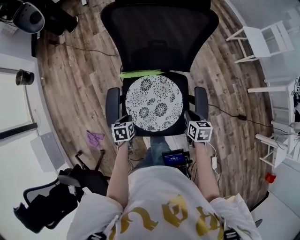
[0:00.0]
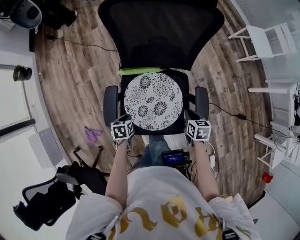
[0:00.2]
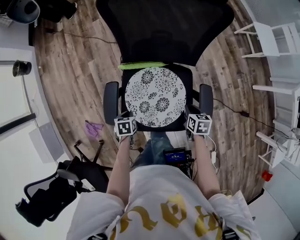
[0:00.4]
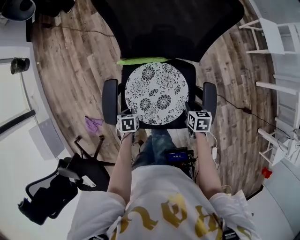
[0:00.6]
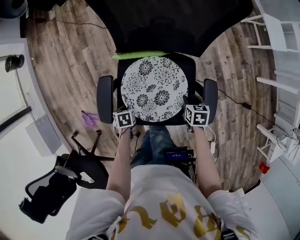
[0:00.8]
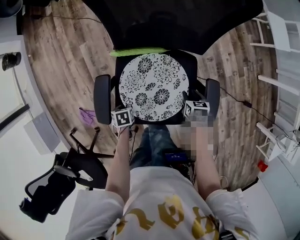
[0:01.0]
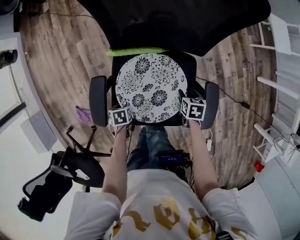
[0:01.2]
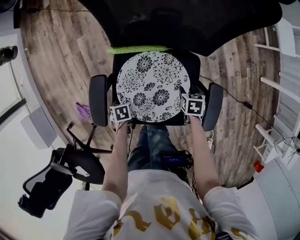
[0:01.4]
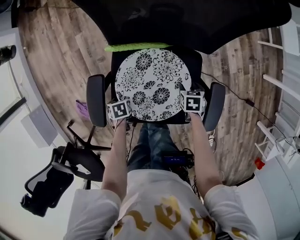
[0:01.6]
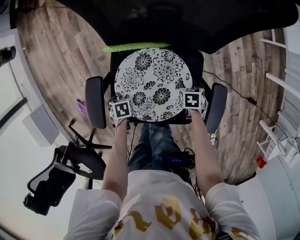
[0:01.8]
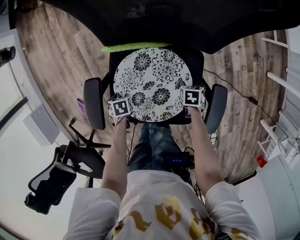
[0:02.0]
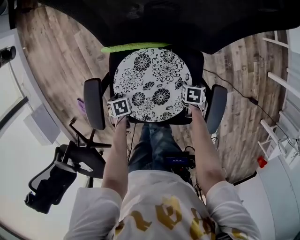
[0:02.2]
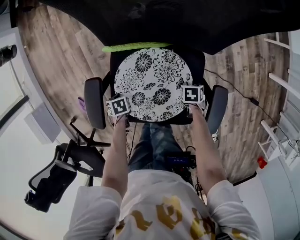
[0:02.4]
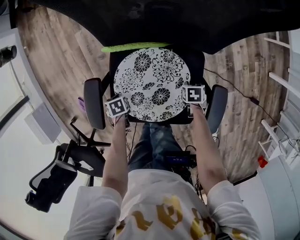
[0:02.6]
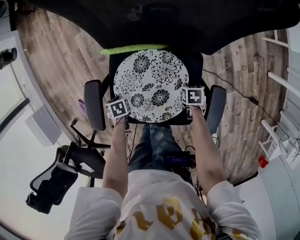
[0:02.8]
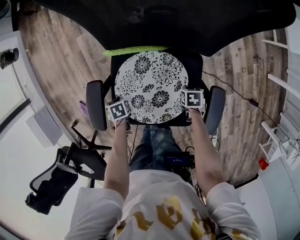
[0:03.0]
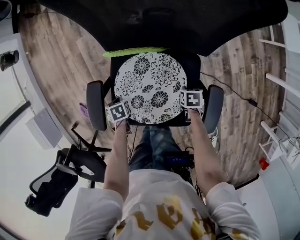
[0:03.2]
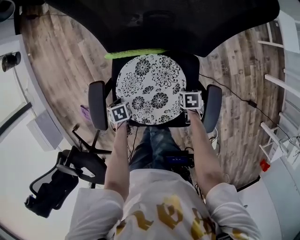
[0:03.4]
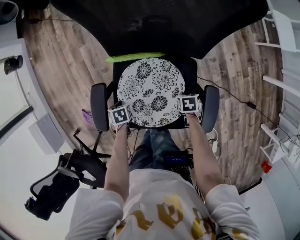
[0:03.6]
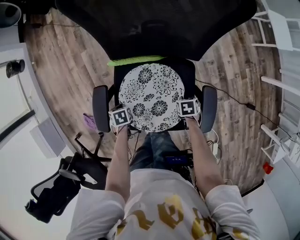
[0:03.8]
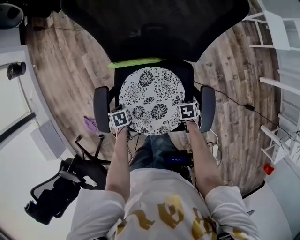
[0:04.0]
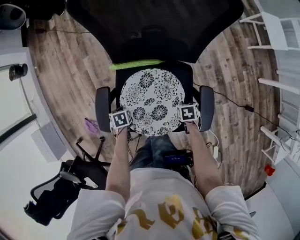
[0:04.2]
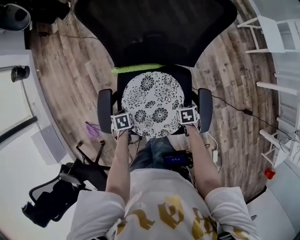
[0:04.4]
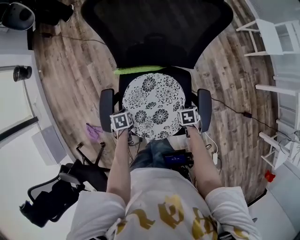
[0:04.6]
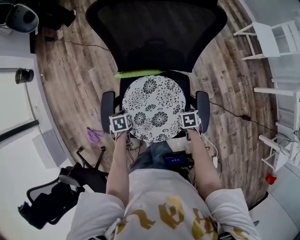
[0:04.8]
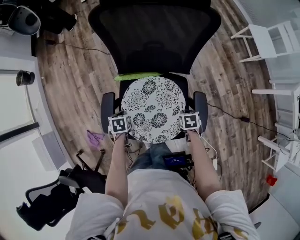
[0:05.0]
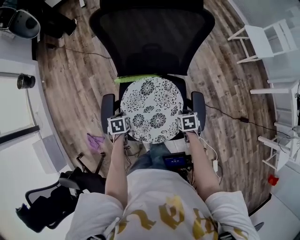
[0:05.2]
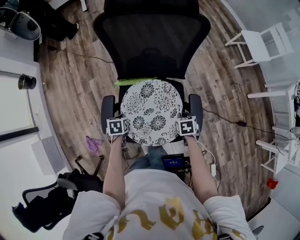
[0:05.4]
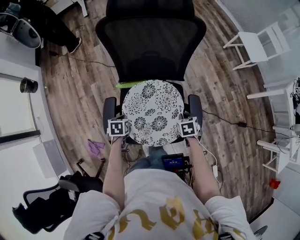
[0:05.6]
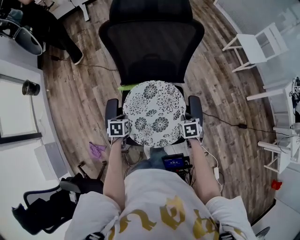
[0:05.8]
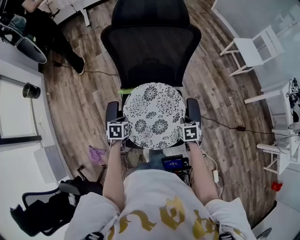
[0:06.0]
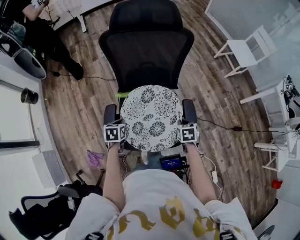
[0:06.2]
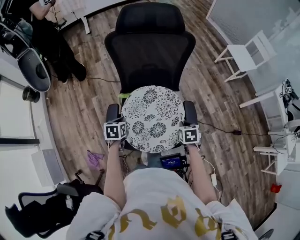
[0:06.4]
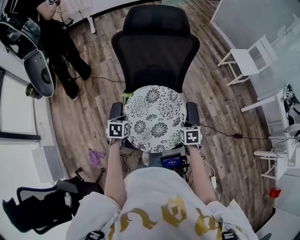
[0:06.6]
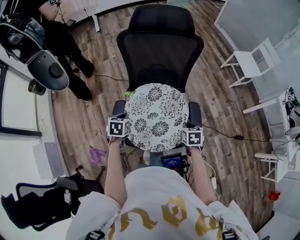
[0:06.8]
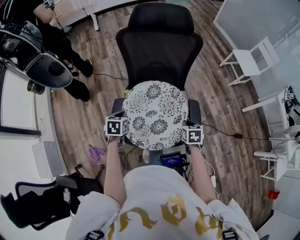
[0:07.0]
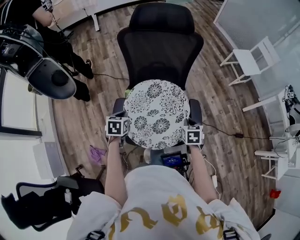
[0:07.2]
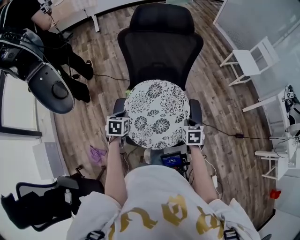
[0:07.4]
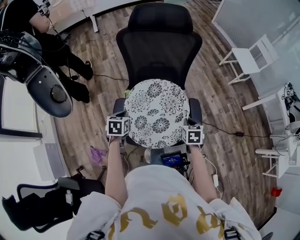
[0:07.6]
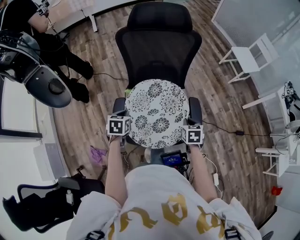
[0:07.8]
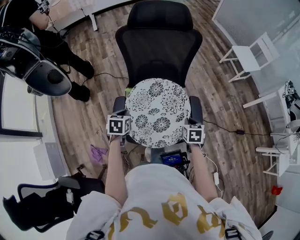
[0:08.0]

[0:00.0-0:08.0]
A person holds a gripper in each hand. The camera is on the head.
0:00.0 to 0:01.6: Both grippers move downward, about 20 cm. The right gripper swivels about 20 degrees, and opens up, while the left gripper rotates approximately 30 degrees, and opens its fingers.
0:01.6 to 0:03.2: The right gripper closes up, while the left gripper closes up.
0:03.2 to 0:04.8: Both grippers move upward, approximately 10 cm.
0:04.8 to 0:06.4: The two grippers go about 15 cm upward. The right gripper swivels roughly 20 degrees, while the left gripper swivels approximately 20 degrees.
0:06.4 to 0:08.0: The left gripper moves upward, roughly 5 cm.

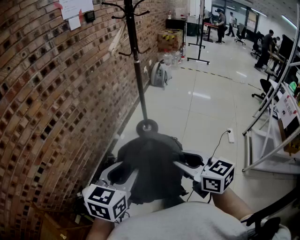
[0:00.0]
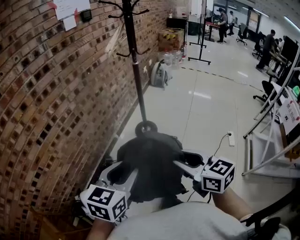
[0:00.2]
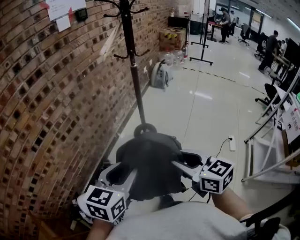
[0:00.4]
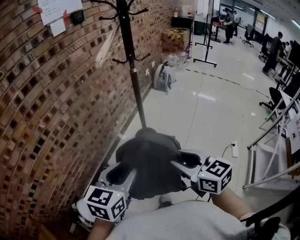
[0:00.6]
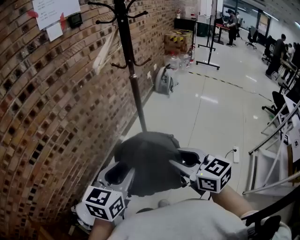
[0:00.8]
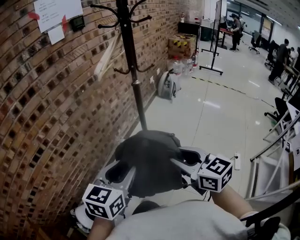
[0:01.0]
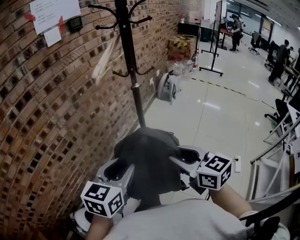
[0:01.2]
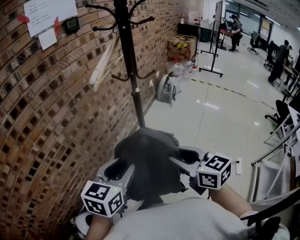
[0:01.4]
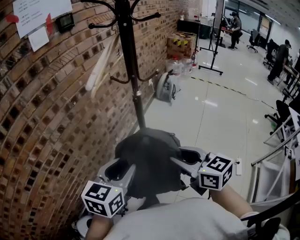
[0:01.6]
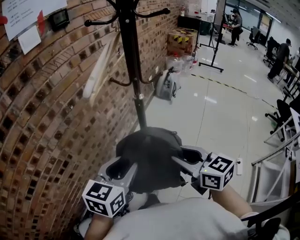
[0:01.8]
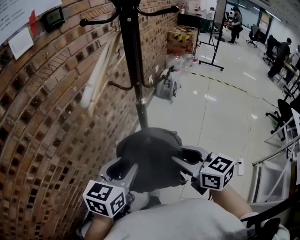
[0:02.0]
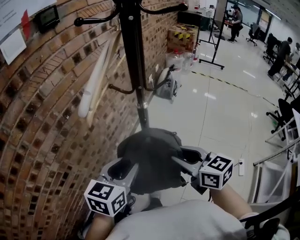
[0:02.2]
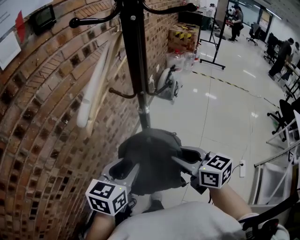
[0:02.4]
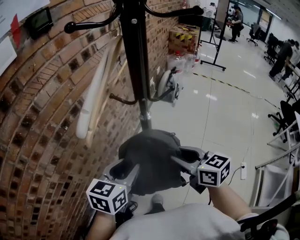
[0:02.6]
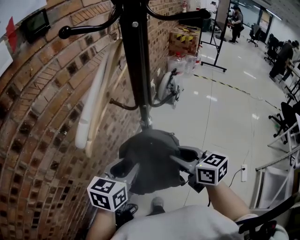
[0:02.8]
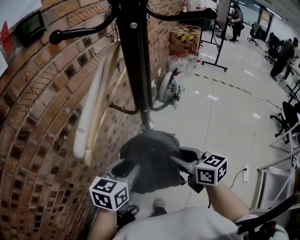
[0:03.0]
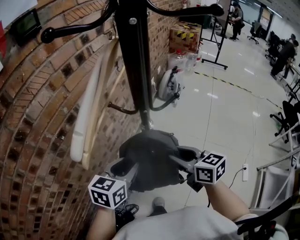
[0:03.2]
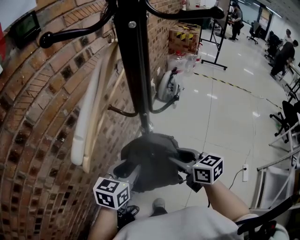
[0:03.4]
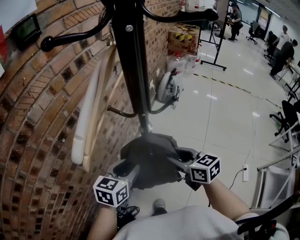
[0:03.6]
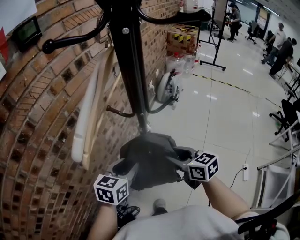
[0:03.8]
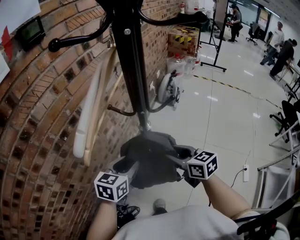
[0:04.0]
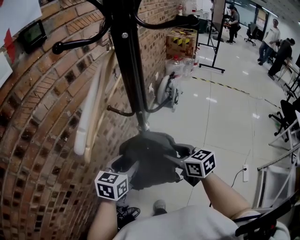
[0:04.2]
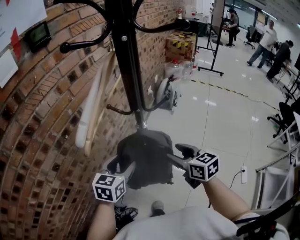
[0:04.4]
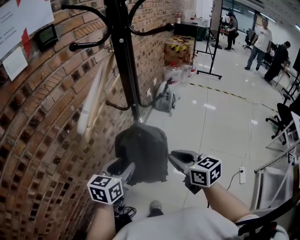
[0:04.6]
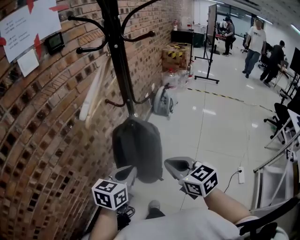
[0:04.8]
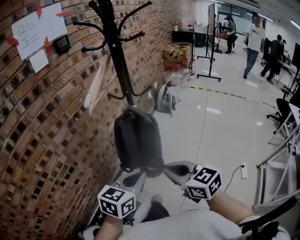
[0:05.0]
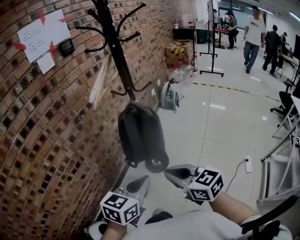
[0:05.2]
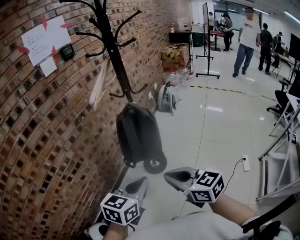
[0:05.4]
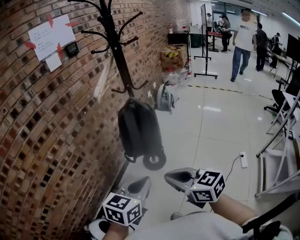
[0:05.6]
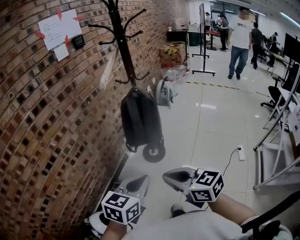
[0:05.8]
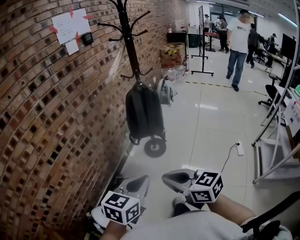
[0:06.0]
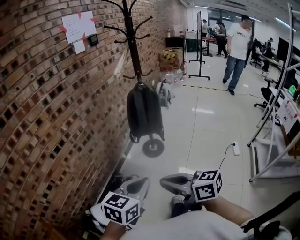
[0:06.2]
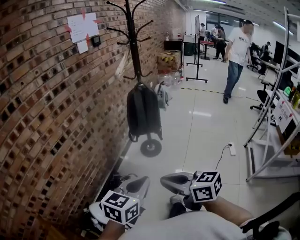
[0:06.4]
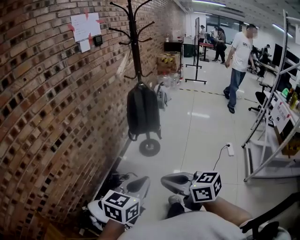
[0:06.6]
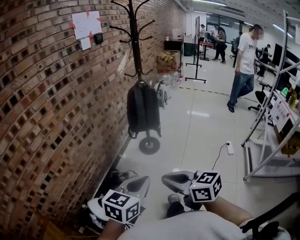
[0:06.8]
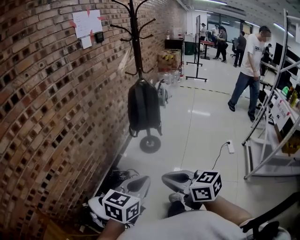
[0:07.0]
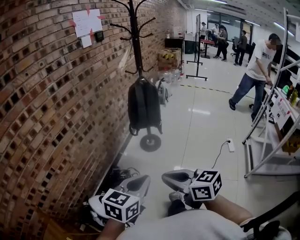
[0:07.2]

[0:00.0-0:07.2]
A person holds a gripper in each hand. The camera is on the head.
0:00.0 to 0:01.4: The grippers both shift forward by some 35 cm.
0:01.4 to 0:02.8: The two grippers go about 30 cm forward.
0:02.8 to 0:04.4: The right gripper opens up. Meanwhile the left gripper opens up.
0:04.4 to 0:05.8: Both grippers are carried backward, roughly 50 cm. The right gripper closes up. The left gripper closes its fingers.
0:05.8 to 0:07.2: Both grippers travel together backward and to the left, some 20 cm.

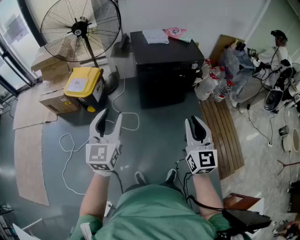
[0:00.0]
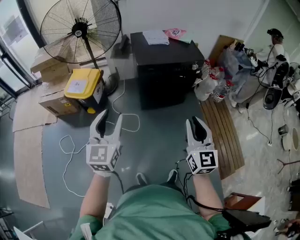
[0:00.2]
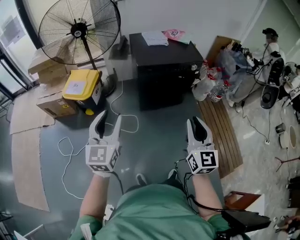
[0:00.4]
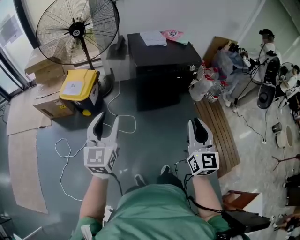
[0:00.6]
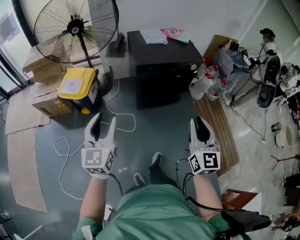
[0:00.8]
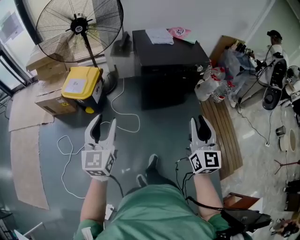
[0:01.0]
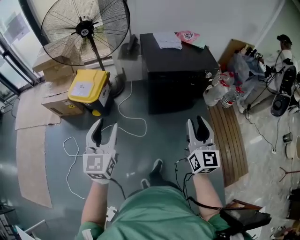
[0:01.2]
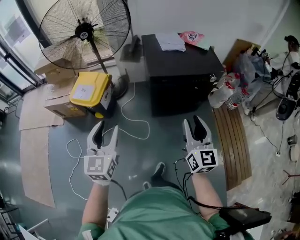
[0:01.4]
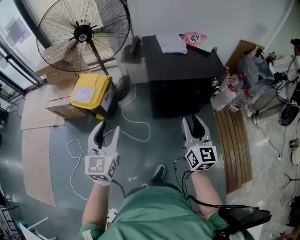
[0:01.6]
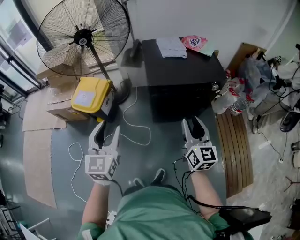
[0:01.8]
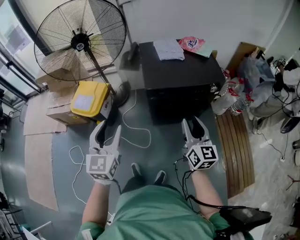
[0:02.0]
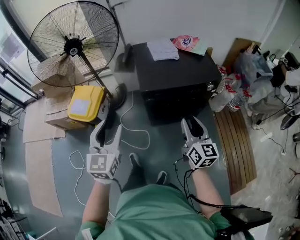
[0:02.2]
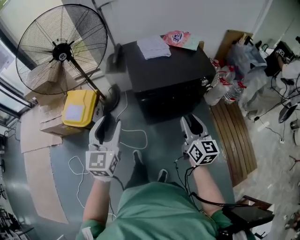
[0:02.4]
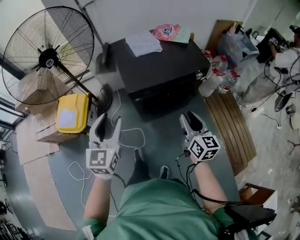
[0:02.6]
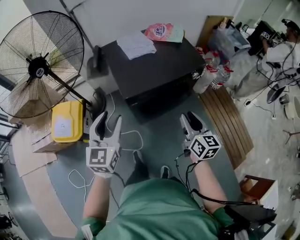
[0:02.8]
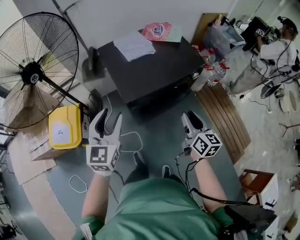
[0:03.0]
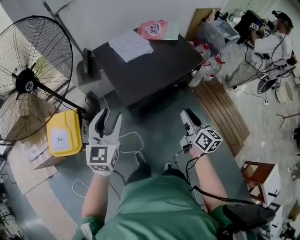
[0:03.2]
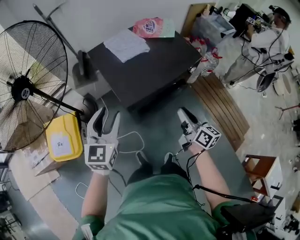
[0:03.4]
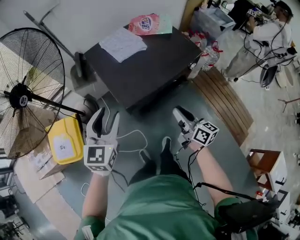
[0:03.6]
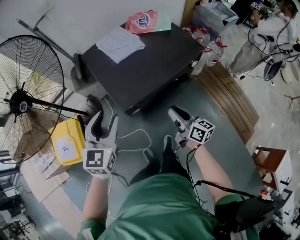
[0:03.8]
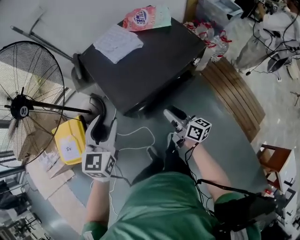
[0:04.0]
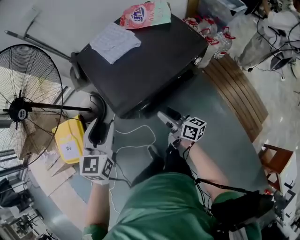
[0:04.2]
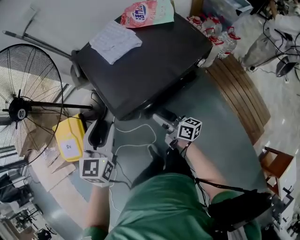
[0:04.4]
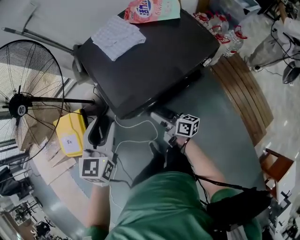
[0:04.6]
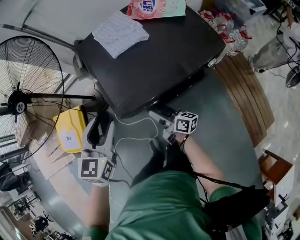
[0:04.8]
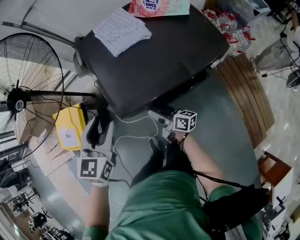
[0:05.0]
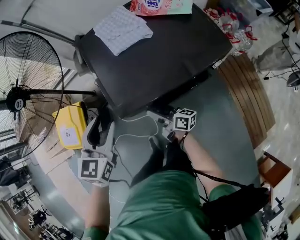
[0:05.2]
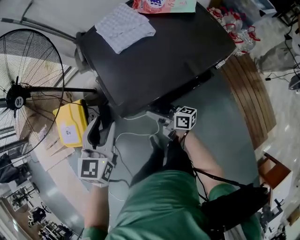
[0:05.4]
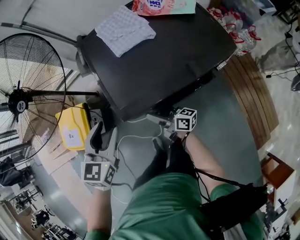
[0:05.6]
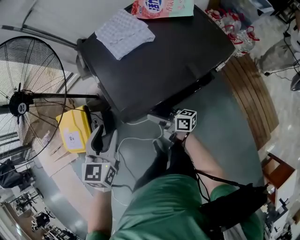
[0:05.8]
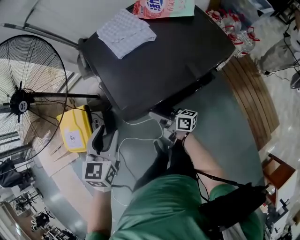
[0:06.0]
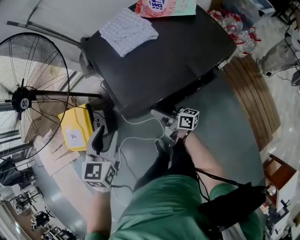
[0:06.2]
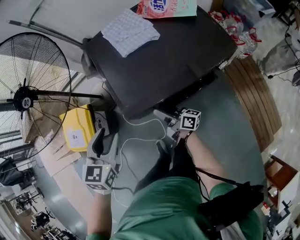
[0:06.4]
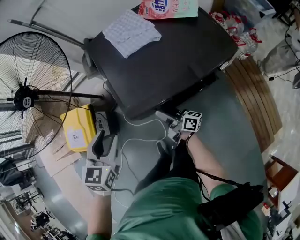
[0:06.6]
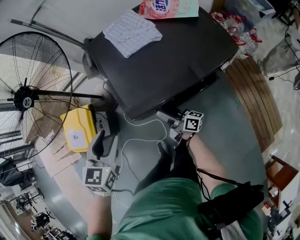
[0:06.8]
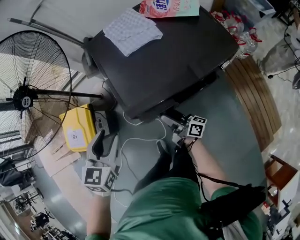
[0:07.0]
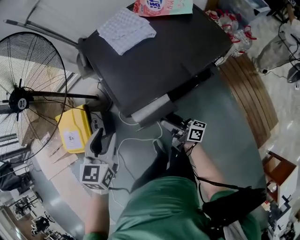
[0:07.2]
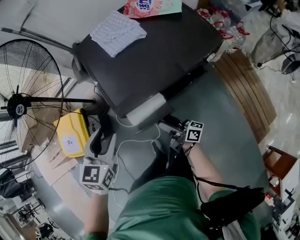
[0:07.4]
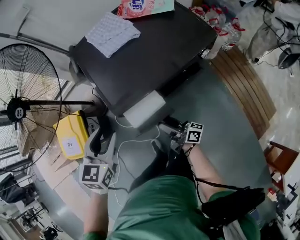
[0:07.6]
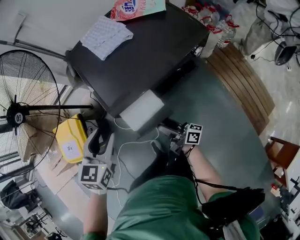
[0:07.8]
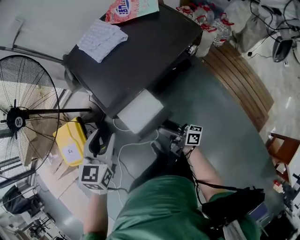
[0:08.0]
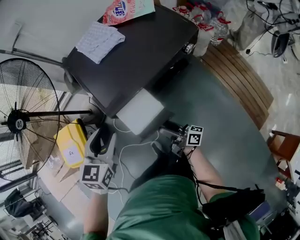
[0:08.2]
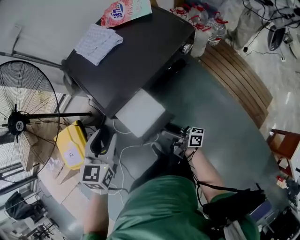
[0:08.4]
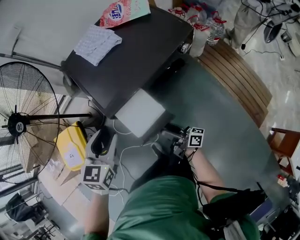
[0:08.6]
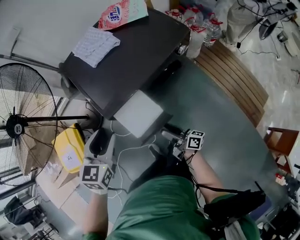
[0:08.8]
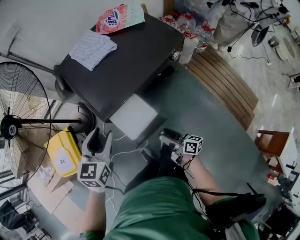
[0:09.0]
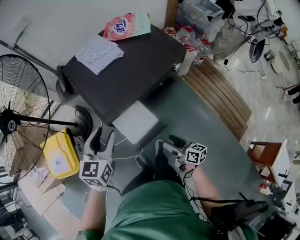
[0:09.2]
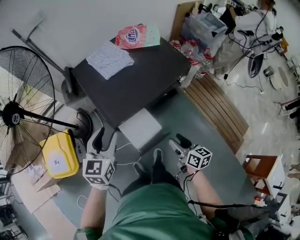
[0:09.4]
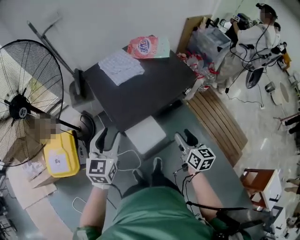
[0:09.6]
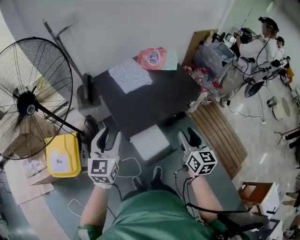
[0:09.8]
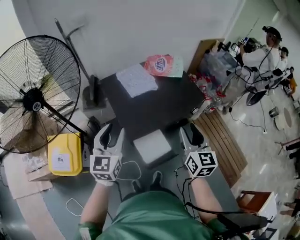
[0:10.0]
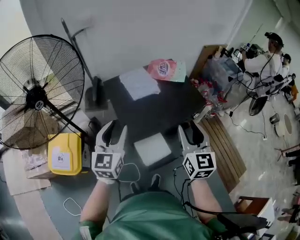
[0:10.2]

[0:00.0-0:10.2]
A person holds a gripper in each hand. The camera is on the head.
0:00.0 to 0:01.4: The left gripper moves forward and to the left, approximately 15 cm. Meanwhile the right gripper heads forward, covering about 20 cm.
0:01.4 to 0:03.0: The right gripper moves forward and downward, roughly 25 cm, and changes its angle by some 30 degrees. The left gripper travels forward by some 30 cm, and swivels roughly 20 degrees.
0:03.0 to 0:04.4: The left gripper is displaced forward, downward and to the right by approximately 15 cm. Meanwhile the right gripper is displaced downward, forward and to the left by approximately 25 cm, and swivels approximately 40 degrees.
0:04.4 to 0:05.8: The right gripper shifts about 10 cm forward, downward and to the left, and opens up. Meanwhile the left gripper shifts about 5 cm downward.
0:05.8 to 0:07.2: The right gripper shifts some 5 cm backward.
0:07.2 to 0:08.8: The right gripper moves backward and to the right, some 15 cm; the left gripper goes approximately 5 cm to the right.
0:08.8 to 0:10.2: The right gripper heads upward, covering some 40 cm, and rolls counterclockwise, seen from behind, by about 70 degrees; the left gripper moves upward and to the left, approximately 20 cm, and swivels roughly 30 degrees.
